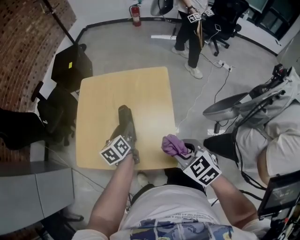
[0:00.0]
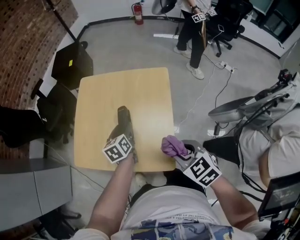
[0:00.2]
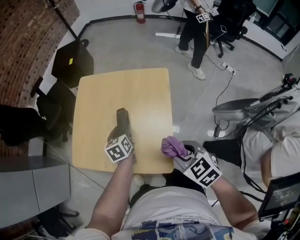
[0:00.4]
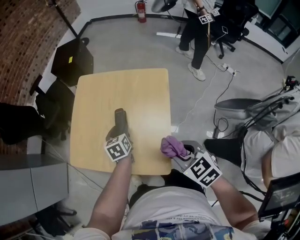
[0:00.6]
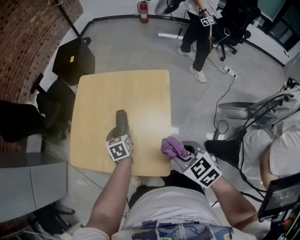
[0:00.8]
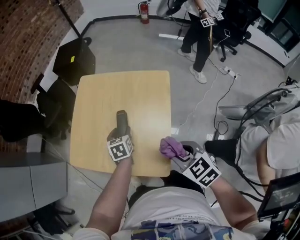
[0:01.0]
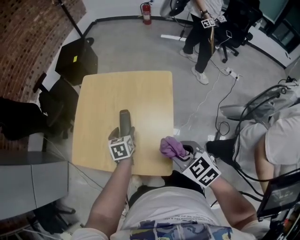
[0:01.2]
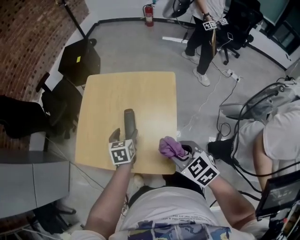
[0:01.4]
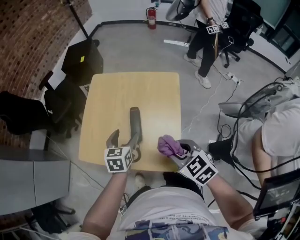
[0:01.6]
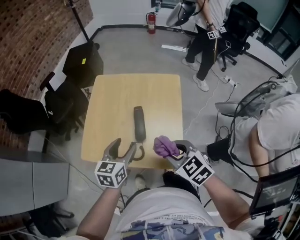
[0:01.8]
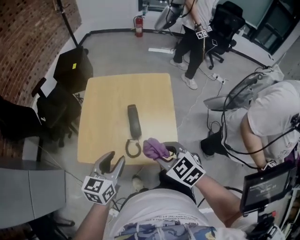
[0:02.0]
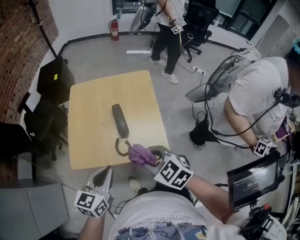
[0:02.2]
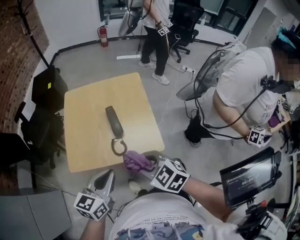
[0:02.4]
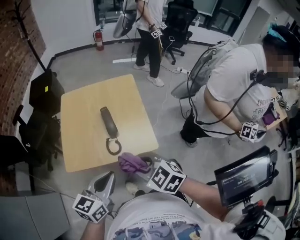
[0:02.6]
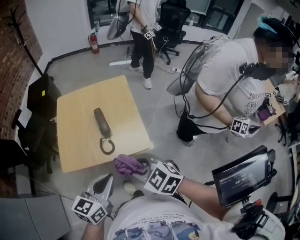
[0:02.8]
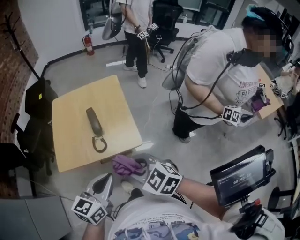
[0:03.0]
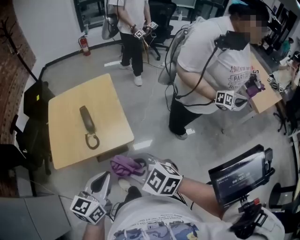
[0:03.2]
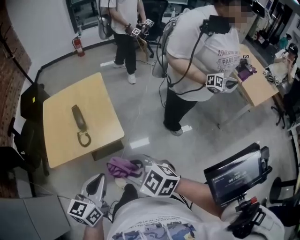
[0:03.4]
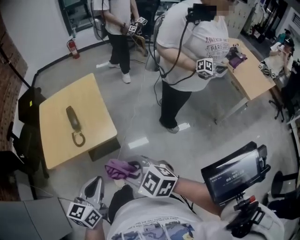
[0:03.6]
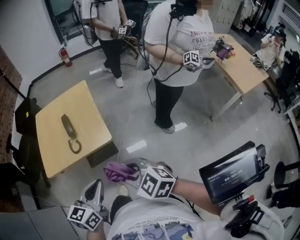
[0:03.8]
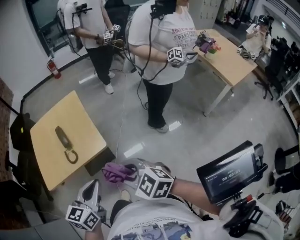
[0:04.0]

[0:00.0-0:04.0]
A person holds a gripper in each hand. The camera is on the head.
0:00.0 to 0:01.4: The left gripper swivels about 30 degrees.
0:01.4 to 0:02.6: The right gripper moves to the left and backward, some 20 cm, while the left gripper shifts approximately 30 cm backward and upward, swivels roughly 40 degrees, and closes.
0:02.6 to 0:04.0: The right gripper goes about 10 cm backward and to the right; the left gripper shifts approximately 10 cm to the right and backward.

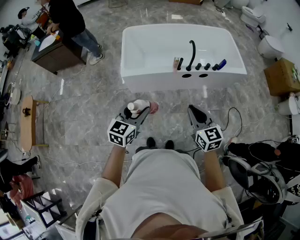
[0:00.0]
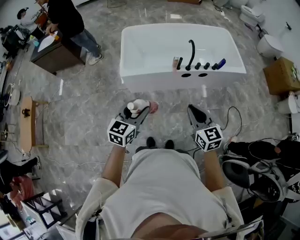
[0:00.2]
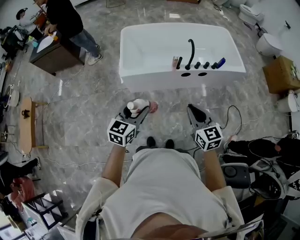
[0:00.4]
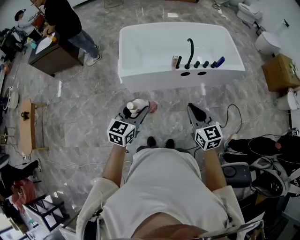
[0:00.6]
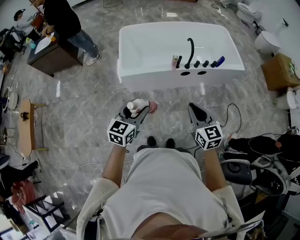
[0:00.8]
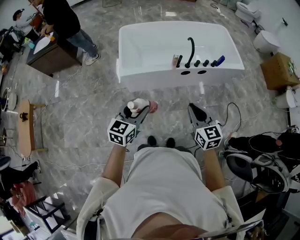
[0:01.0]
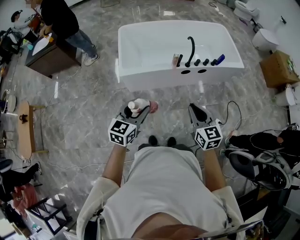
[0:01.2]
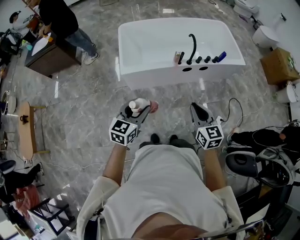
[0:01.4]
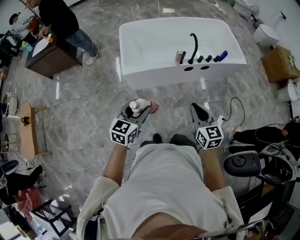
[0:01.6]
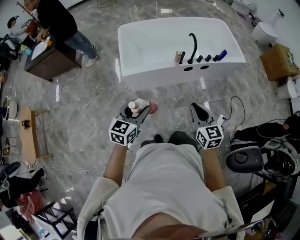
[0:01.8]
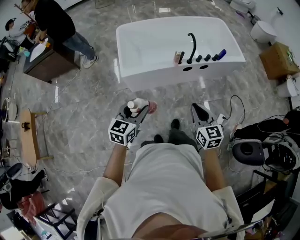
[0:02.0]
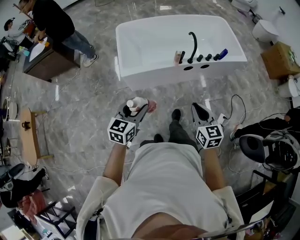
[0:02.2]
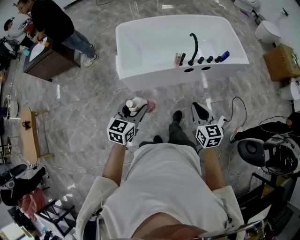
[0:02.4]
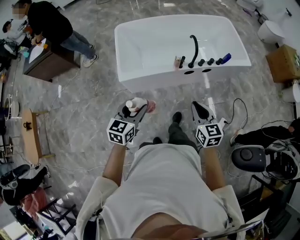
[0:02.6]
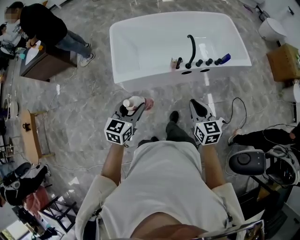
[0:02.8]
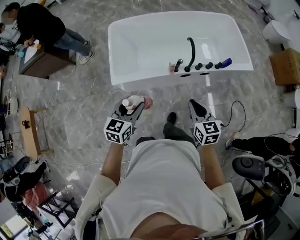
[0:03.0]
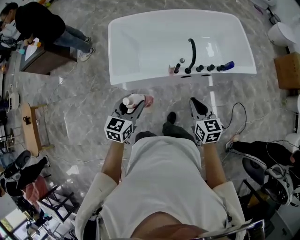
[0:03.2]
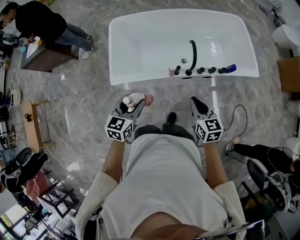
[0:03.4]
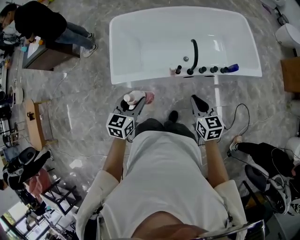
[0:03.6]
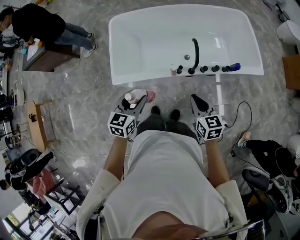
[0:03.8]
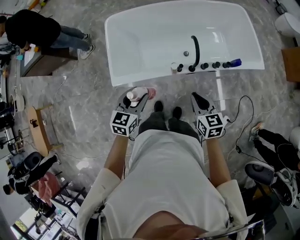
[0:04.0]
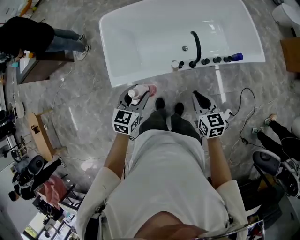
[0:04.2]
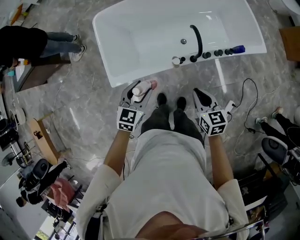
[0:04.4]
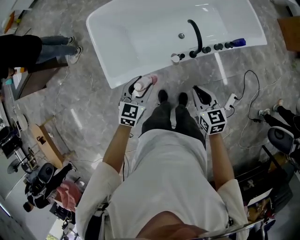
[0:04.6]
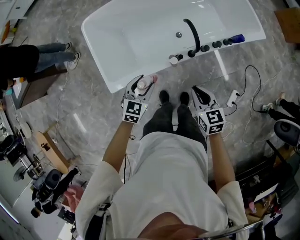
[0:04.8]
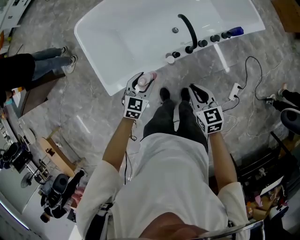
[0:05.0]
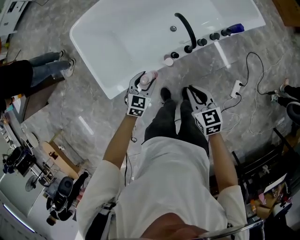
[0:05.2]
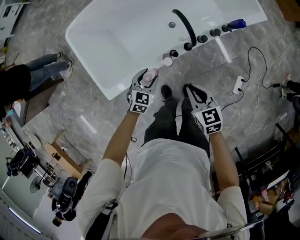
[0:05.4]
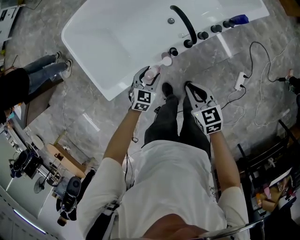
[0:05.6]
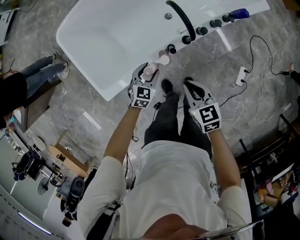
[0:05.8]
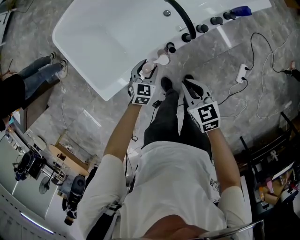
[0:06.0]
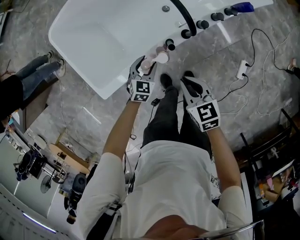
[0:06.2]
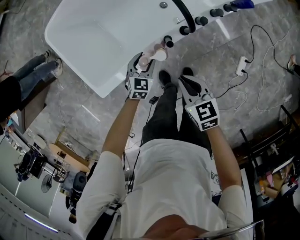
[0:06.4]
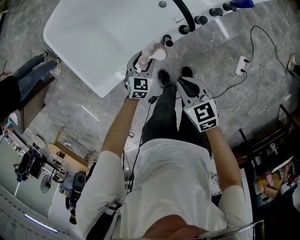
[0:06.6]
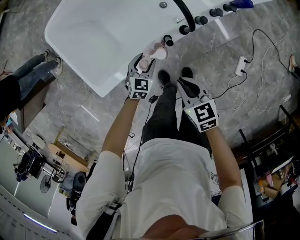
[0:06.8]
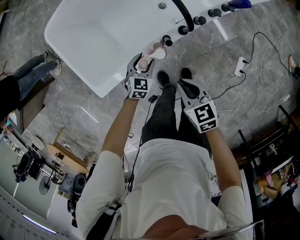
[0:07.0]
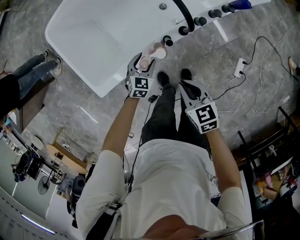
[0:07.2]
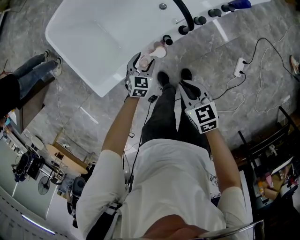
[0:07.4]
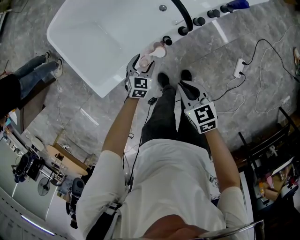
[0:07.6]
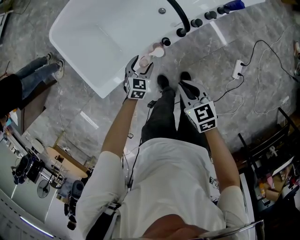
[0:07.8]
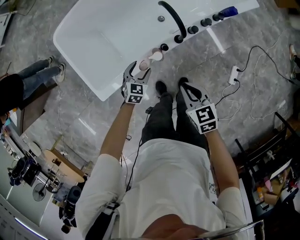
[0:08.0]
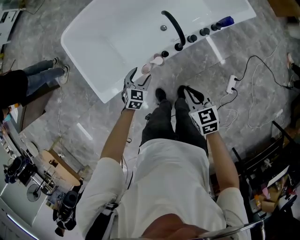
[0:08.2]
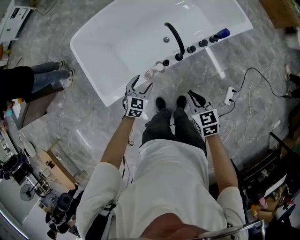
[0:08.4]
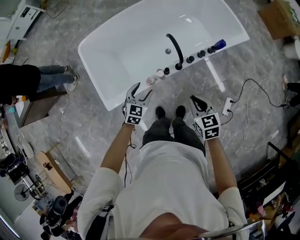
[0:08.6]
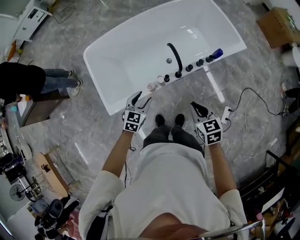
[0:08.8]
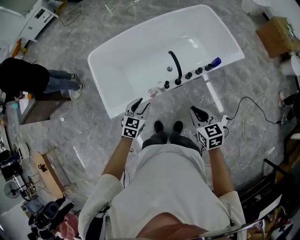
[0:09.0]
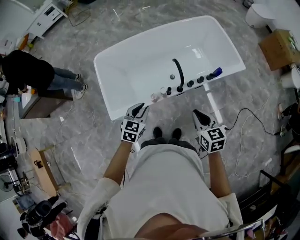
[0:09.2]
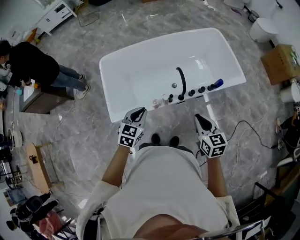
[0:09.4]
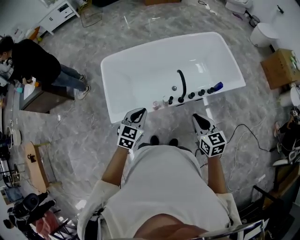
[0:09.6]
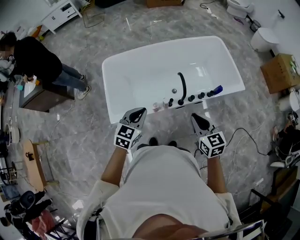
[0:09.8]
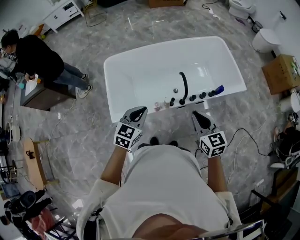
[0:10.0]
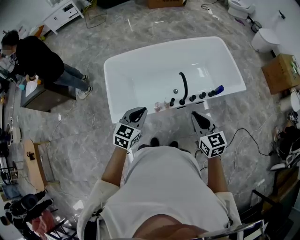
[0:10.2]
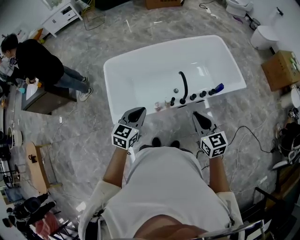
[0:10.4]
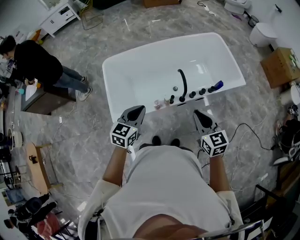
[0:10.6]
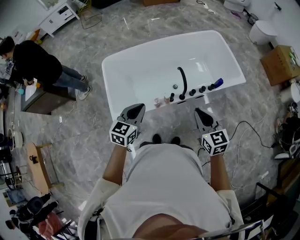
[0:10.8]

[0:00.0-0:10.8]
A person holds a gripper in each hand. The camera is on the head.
0:00.0 to 0:01.6: The grippers both shift to the left by approximately 5 cm.
0:01.6 to 0:03.0: Both grippers travel together forward, approximately 25 cm.
0:03.0 to 0:04.6: The grippers both shift forward and downward by roughly 20 cm.
0:04.6 to 0:06.2: The right gripper moves downward, roughly 15 cm; the left gripper goes some 30 cm downward.
0:06.2 to 0:07.8: The grippers make only small movements.
0:07.8 to 0:09.2: The left gripper heads upward, covering some 35 cm, and closes, while the right gripper goes about 25 cm upward and to the right.
0:09.2 to 0:10.8: The left gripper moves upward, some 10 cm; the right gripper travels upward by some 10 cm.

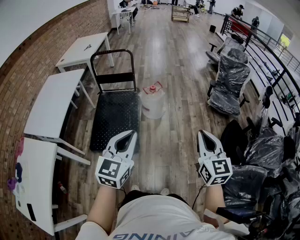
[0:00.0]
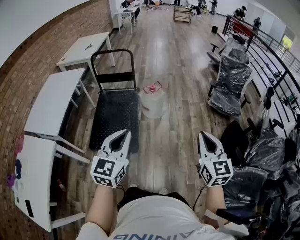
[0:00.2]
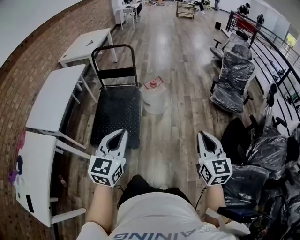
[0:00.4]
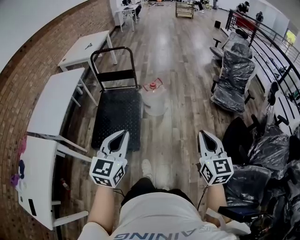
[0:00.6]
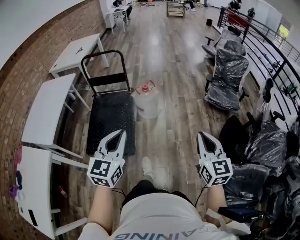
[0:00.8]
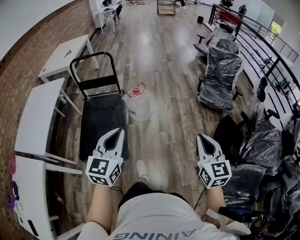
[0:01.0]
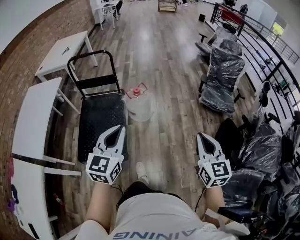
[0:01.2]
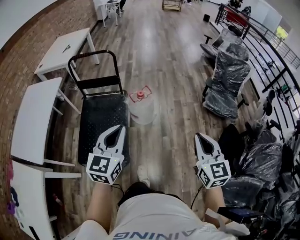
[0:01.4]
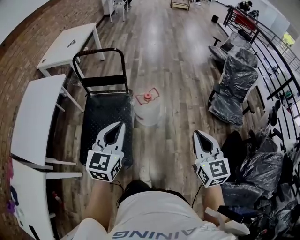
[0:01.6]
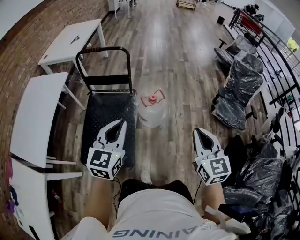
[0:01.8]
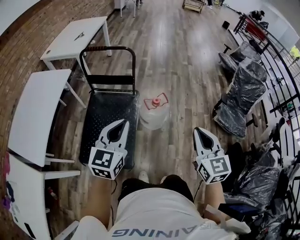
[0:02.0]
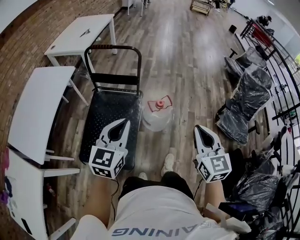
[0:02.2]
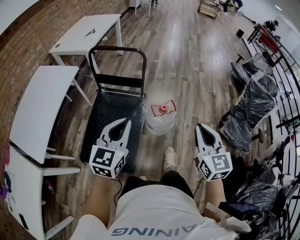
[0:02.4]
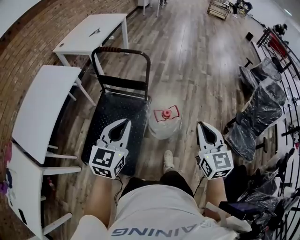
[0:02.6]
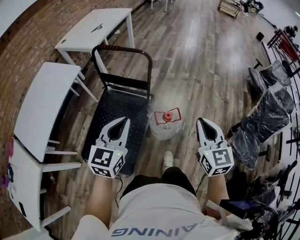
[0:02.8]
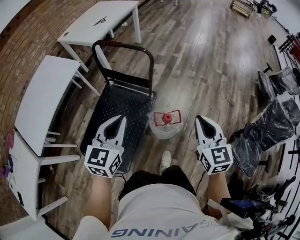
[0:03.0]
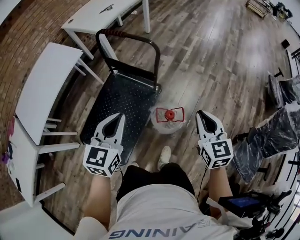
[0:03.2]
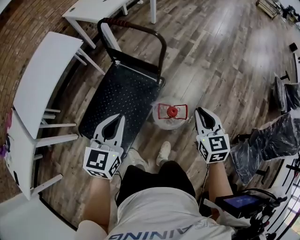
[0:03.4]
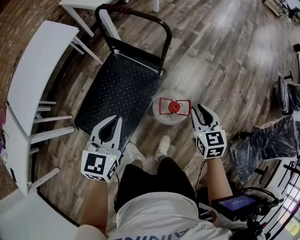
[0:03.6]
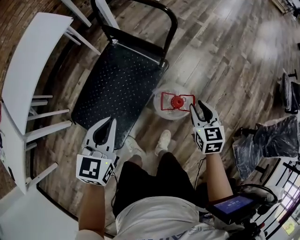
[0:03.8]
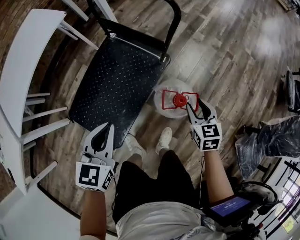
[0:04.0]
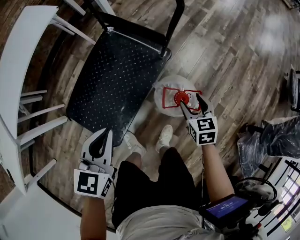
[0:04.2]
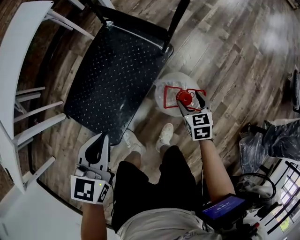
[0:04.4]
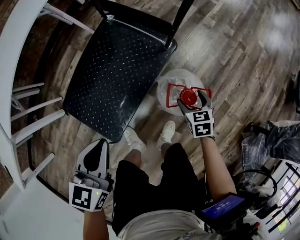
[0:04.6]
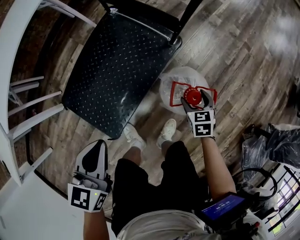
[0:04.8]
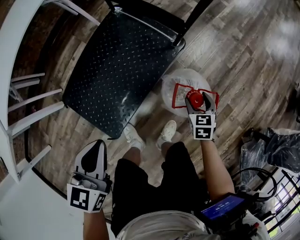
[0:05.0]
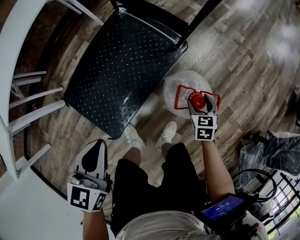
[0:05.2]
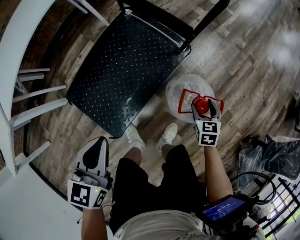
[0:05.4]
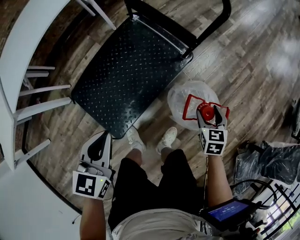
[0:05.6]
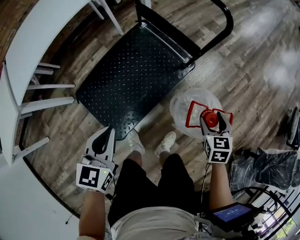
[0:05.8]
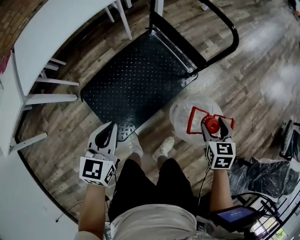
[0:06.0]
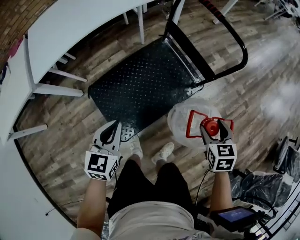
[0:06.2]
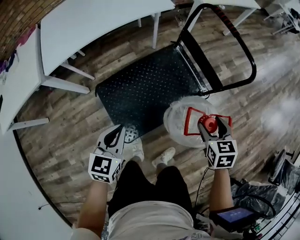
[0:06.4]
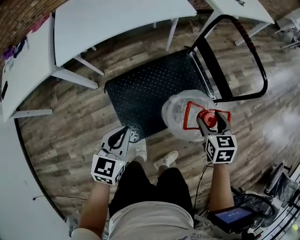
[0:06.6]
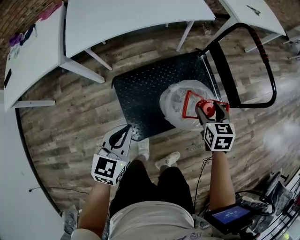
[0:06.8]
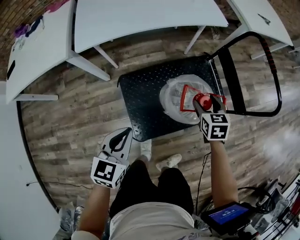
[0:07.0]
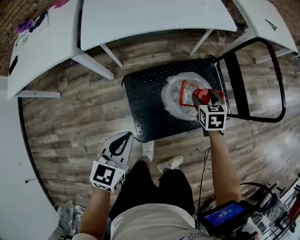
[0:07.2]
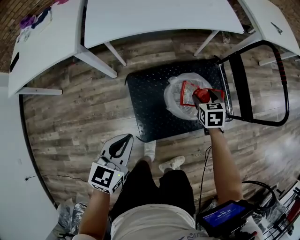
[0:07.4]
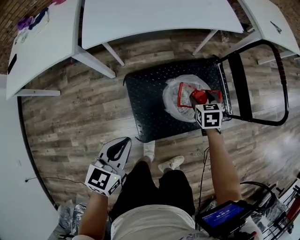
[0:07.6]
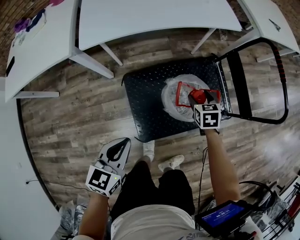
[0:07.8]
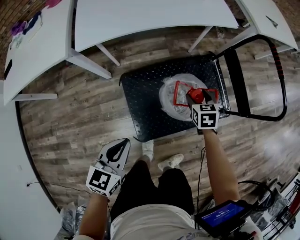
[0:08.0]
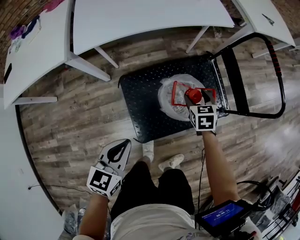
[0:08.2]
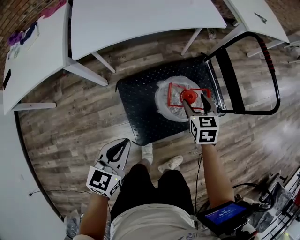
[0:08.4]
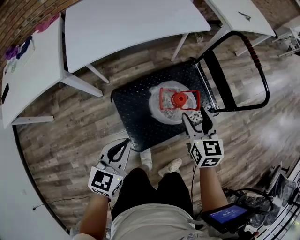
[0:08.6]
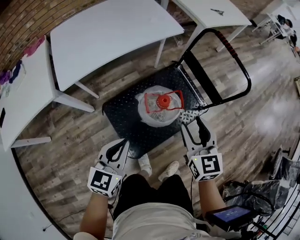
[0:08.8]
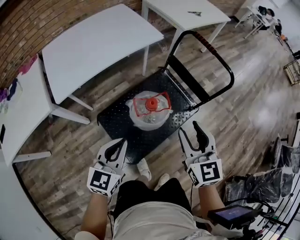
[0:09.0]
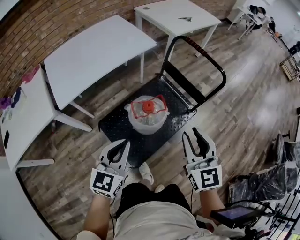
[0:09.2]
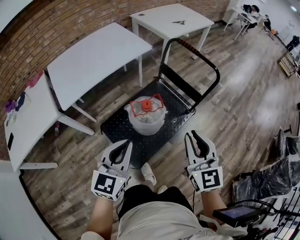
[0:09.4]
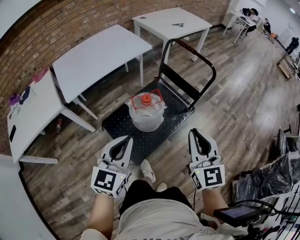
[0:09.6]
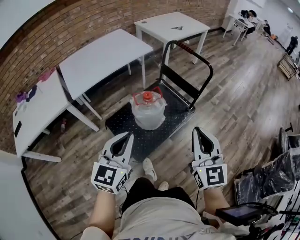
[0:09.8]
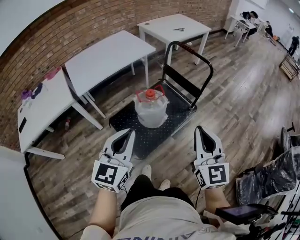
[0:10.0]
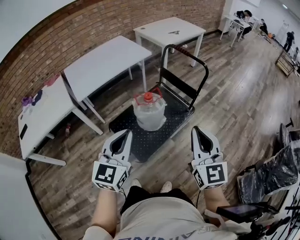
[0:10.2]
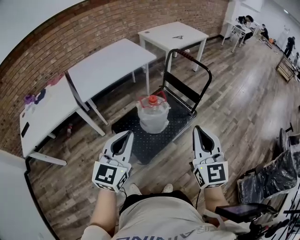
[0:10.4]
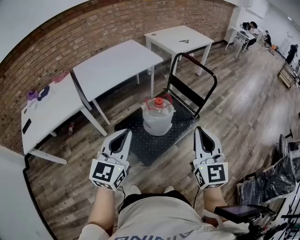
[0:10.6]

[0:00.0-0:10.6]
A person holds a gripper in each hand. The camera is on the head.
0:00.0 to 0:01.6: Both grippers move forward, roughly 25 cm.
0:01.6 to 0:03.0: The two grippers go roughly 35 cm forward. The left gripper turns by roughly 20 degrees, while the right gripper swivels about 20 degrees.
0:03.0 to 0:04.6: The right gripper shifts approximately 50 cm downward, tips its fingers downward by approximately 40 degrees, and opens its fingers. Meanwhile the left gripper shifts some 25 cm downward, and changes its angle by approximately 30 degrees.
0:04.6 to 0:06.0: The right gripper is displaced upward by approximately 20 cm. The left gripper moves to the left, some 10 cm.
0:06.0 to 0:07.6: The left gripper heads to the left, covering some 25 cm; the right gripper moves to the left and forward, about 40 cm, and swivels approximately 30 degrees.
0:07.6 to 0:09.0: The right gripper goes about 35 cm upward and backward, and points its fingers some 40 degrees further upward. Meanwhile the left gripper is displaced upward and to the right by approximately 15 cm, and changes its angle by about 30 degrees.
0:09.0 to 0:10.6: Both grippers move backward and upward, some 30 cm. The right gripper closes its fingers.
